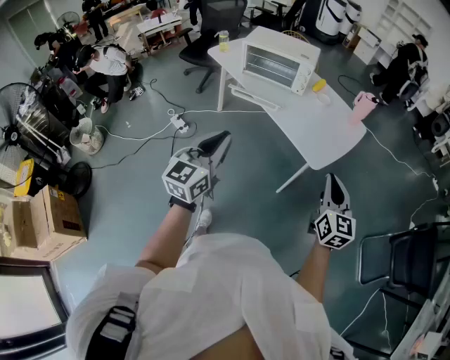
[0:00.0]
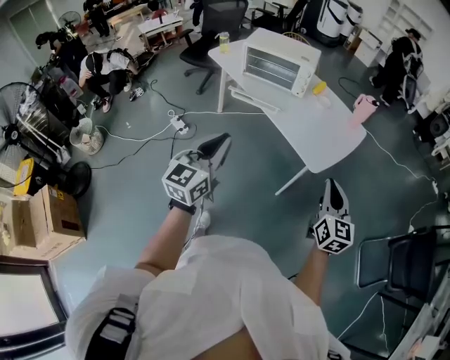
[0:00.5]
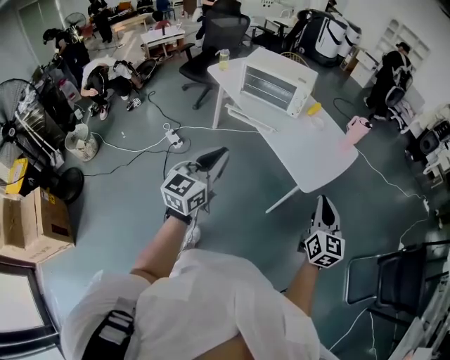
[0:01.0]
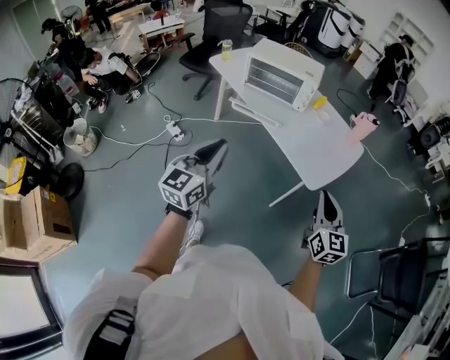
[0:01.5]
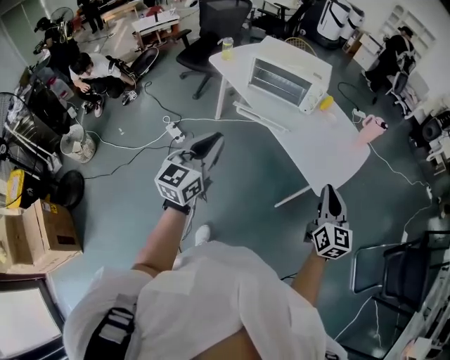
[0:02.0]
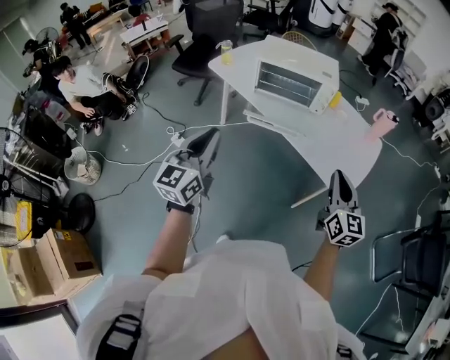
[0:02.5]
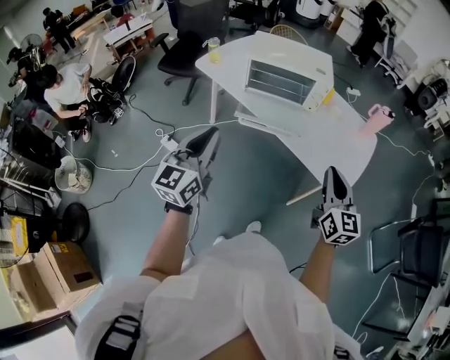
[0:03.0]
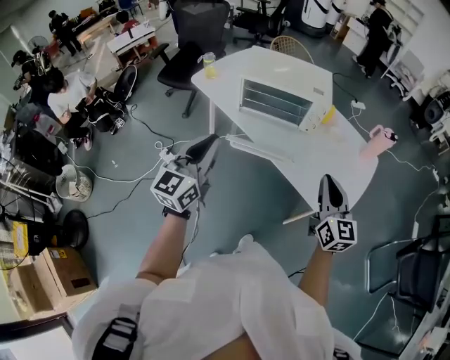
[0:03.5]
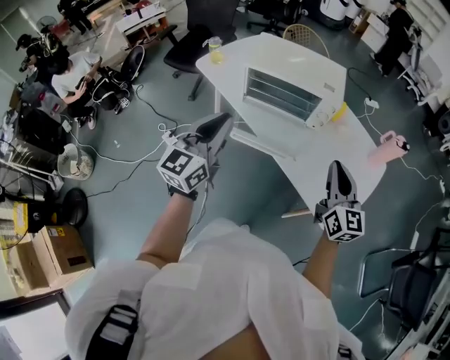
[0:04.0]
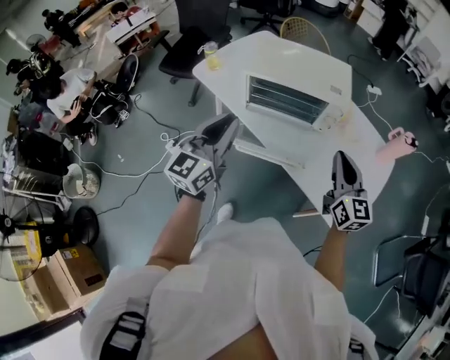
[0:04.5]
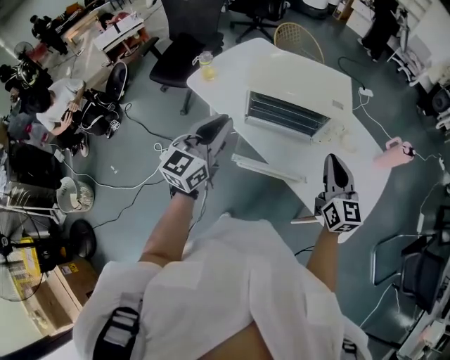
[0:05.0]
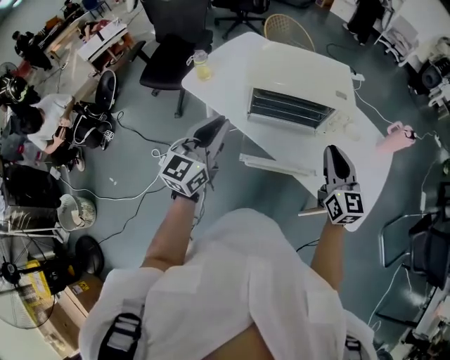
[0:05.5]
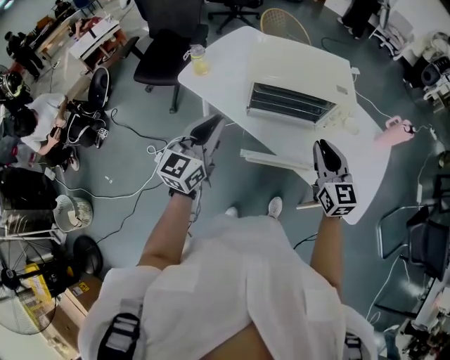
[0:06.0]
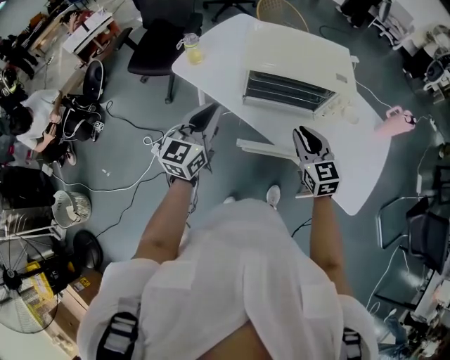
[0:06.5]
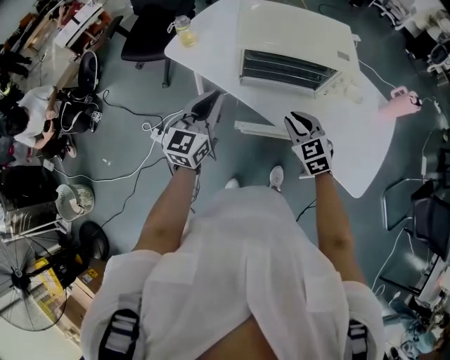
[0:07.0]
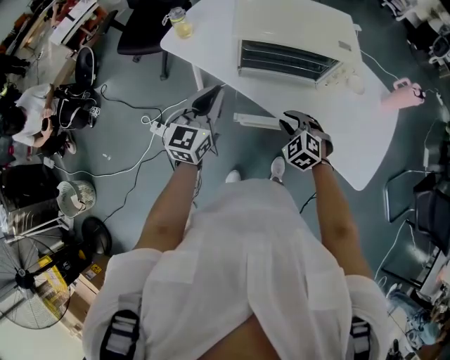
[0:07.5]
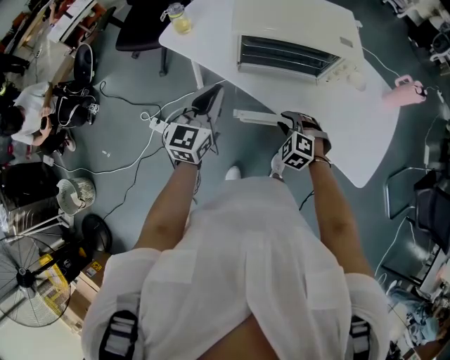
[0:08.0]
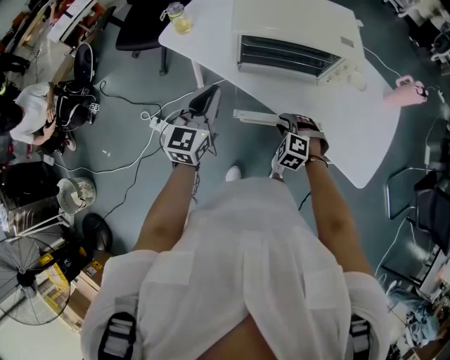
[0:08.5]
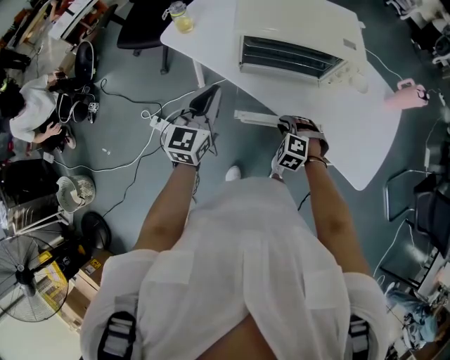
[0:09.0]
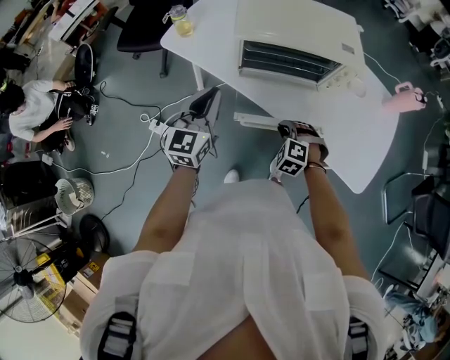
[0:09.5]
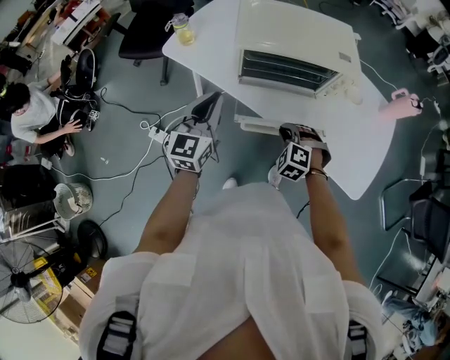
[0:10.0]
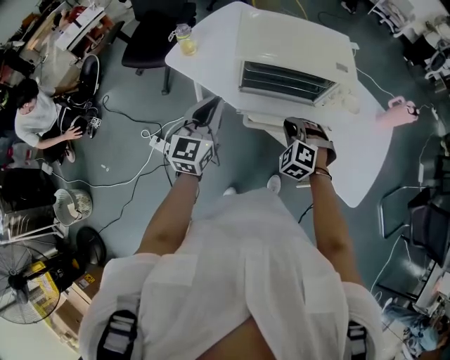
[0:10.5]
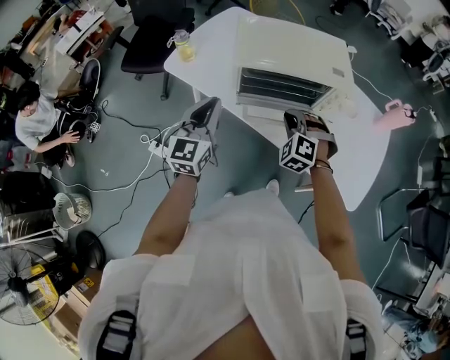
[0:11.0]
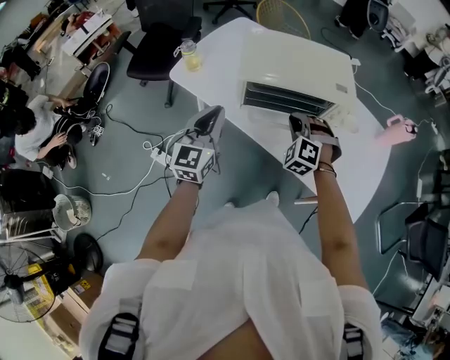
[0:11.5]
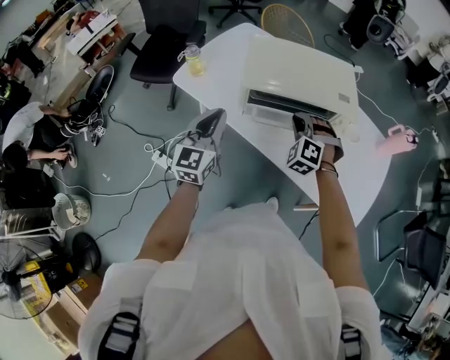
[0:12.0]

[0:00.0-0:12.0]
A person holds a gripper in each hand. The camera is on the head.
0:00.0 to 0:02.0: The right gripper is displaced forward and to the left by about 15 cm. Meanwhile the left gripper moves to the left and forward, some 15 cm.
0:02.0 to 0:04.0: The grippers both shift forward by some 25 cm.
0:04.0 to 0:06.0: The right gripper heads to the left and forward, covering approximately 20 cm. Meanwhile the left gripper travels to the left, forward and downward by roughly 20 cm.
0:06.0 to 0:08.0: The right gripper shifts about 25 cm downward, and angles its fingers downward, by about 50 degrees; the left gripper is displaced downward by roughly 10 cm.
0:08.0 to 0:10.0: The right gripper closes.
0:10.0 to 0:12.0: The left gripper shifts by some 5 cm, while the right gripper shifts some 20 cm forward and upward.

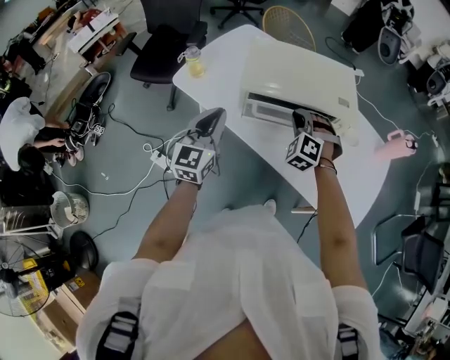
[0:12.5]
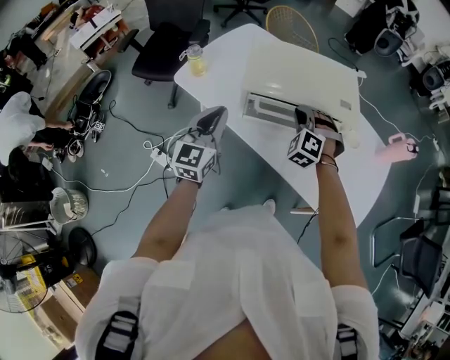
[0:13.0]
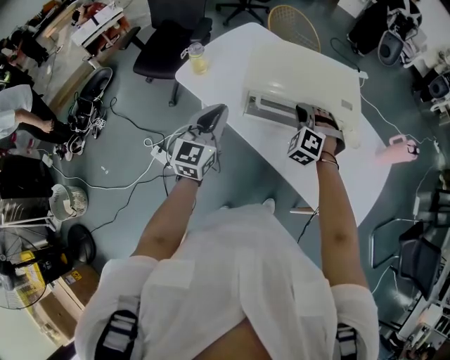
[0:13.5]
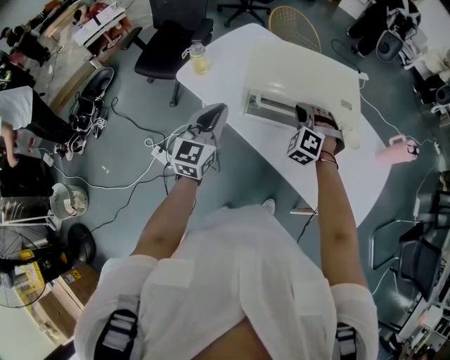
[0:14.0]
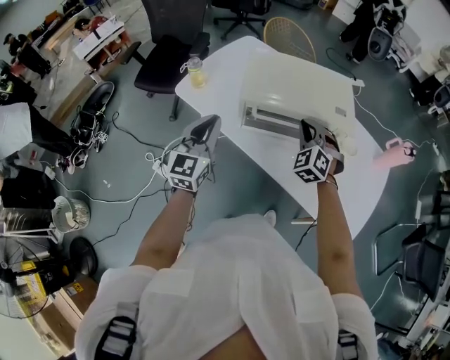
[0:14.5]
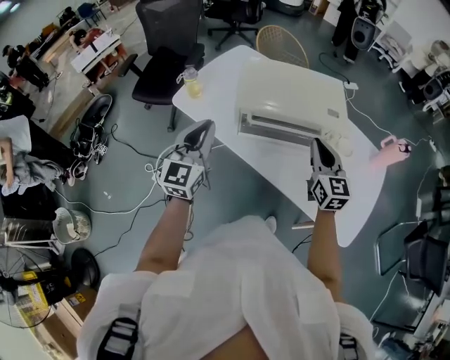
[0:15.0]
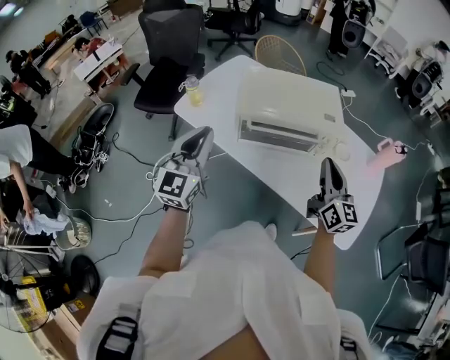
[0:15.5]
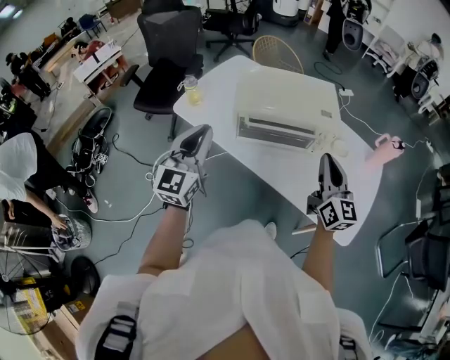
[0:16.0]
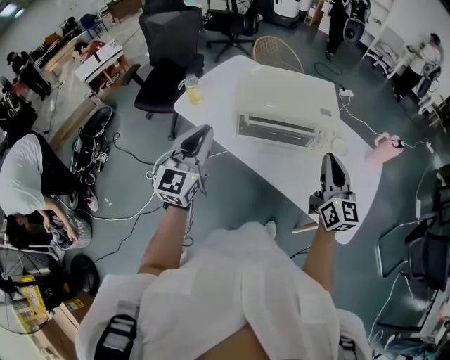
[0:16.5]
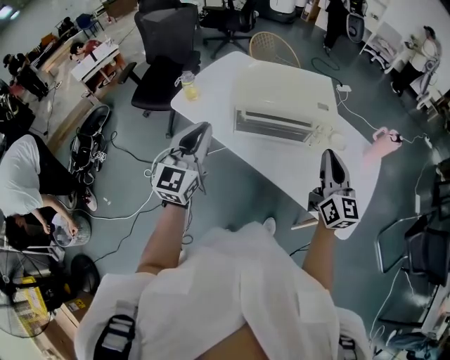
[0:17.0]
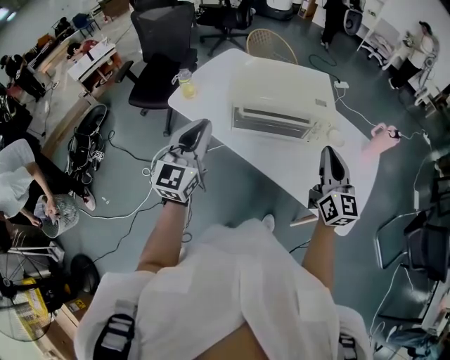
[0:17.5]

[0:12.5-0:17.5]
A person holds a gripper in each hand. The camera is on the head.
0:12.5 to 0:15.0: The right gripper travels upward, to the right and backward by some 15 cm, and rotates around the line of its fingers by approximately 70 degrees, clockwise from behind; the left gripper moves upward, roughly 5 cm.
0:15.0 to 0:17.5: The right gripper goes some 10 cm backward and upward. The left gripper heads backward, covering some 5 cm.

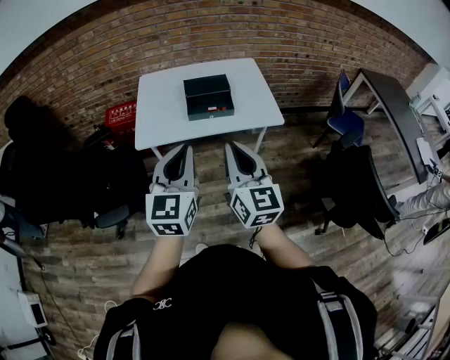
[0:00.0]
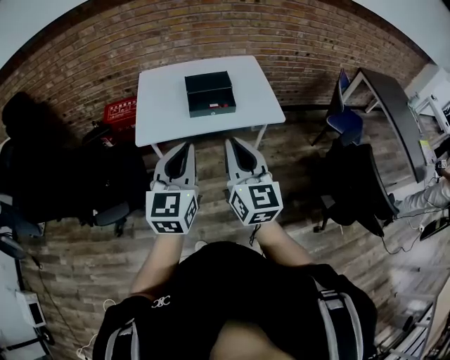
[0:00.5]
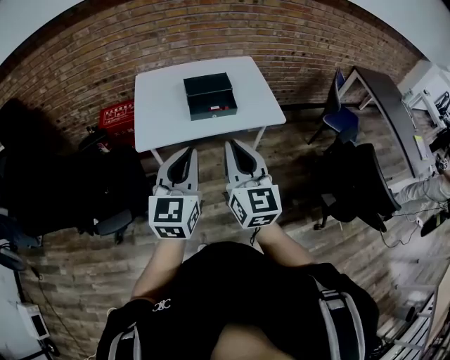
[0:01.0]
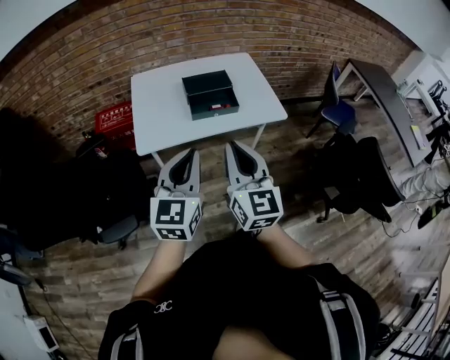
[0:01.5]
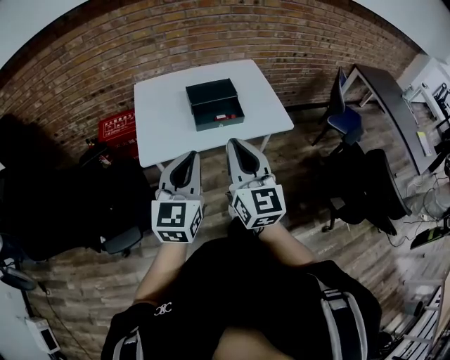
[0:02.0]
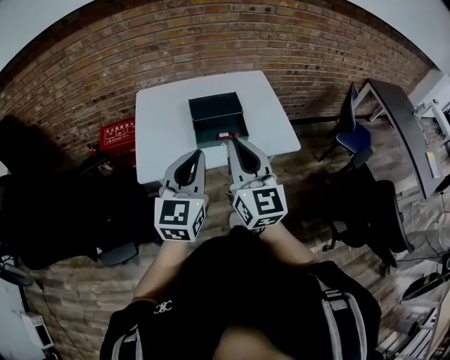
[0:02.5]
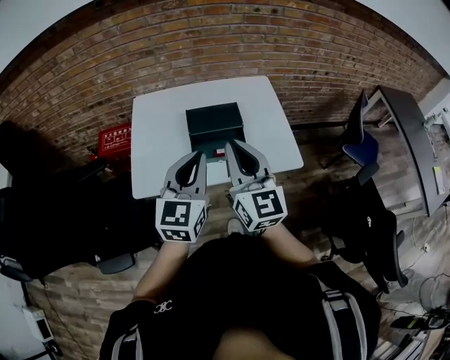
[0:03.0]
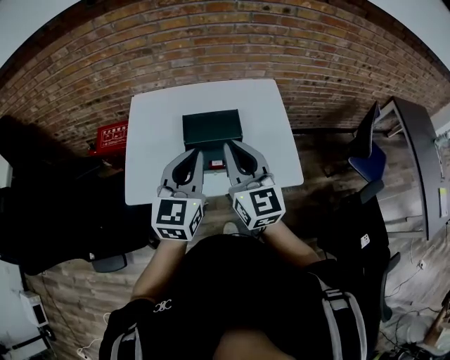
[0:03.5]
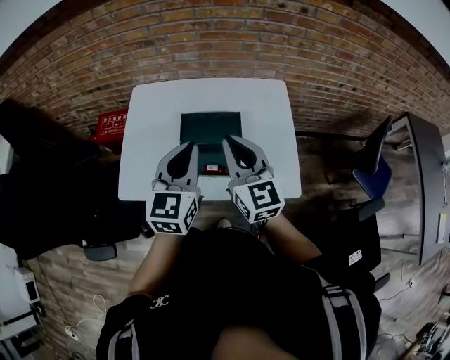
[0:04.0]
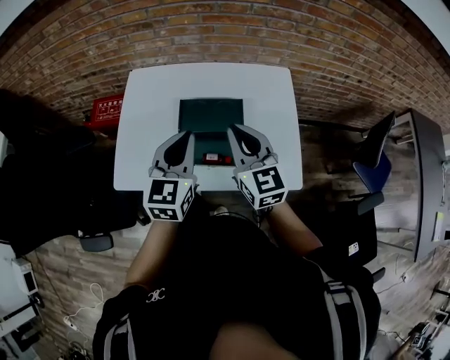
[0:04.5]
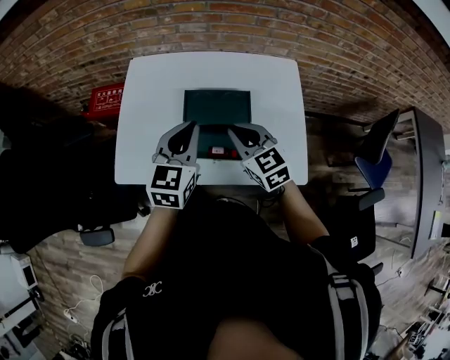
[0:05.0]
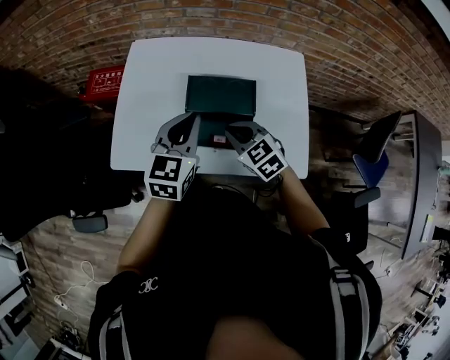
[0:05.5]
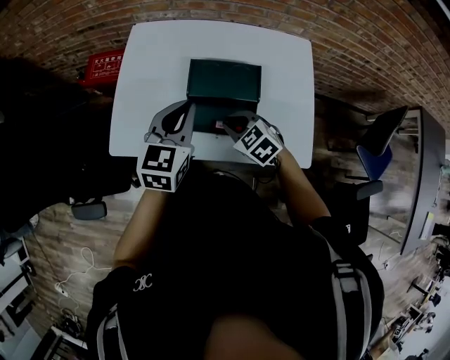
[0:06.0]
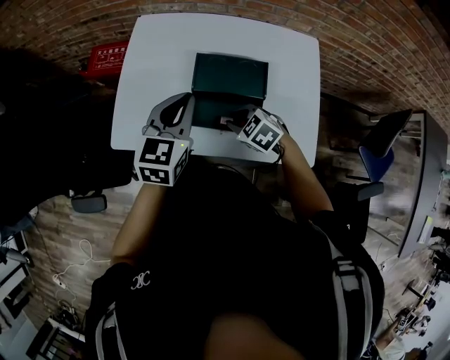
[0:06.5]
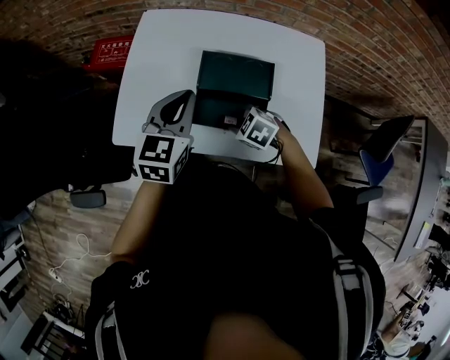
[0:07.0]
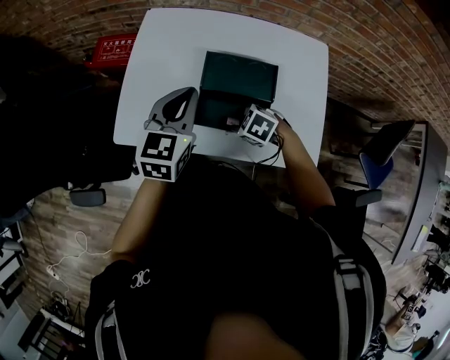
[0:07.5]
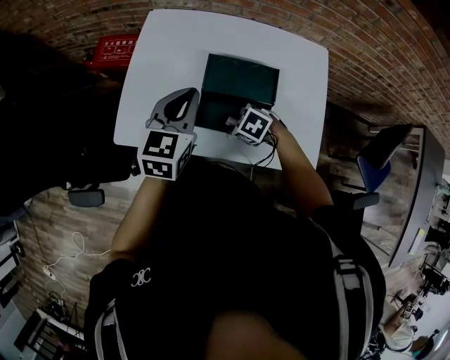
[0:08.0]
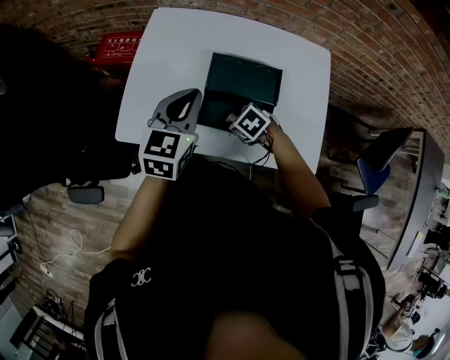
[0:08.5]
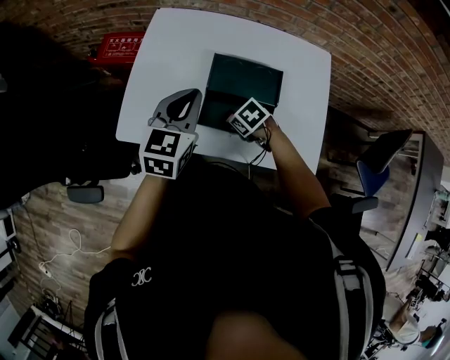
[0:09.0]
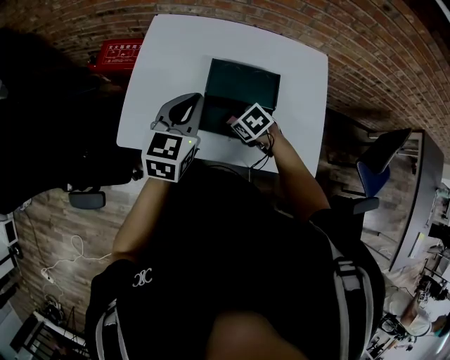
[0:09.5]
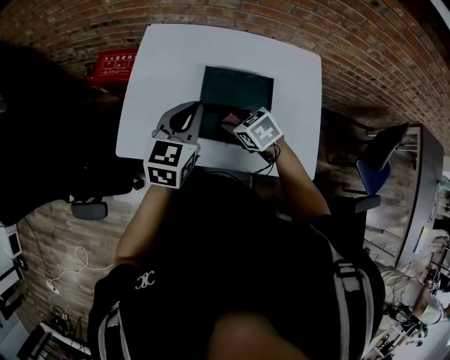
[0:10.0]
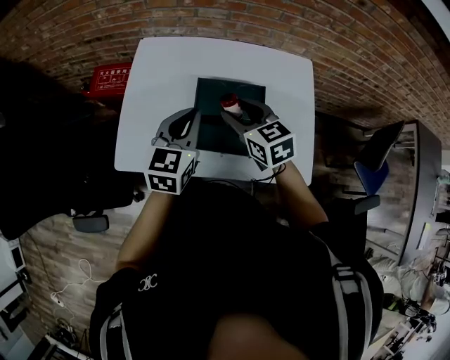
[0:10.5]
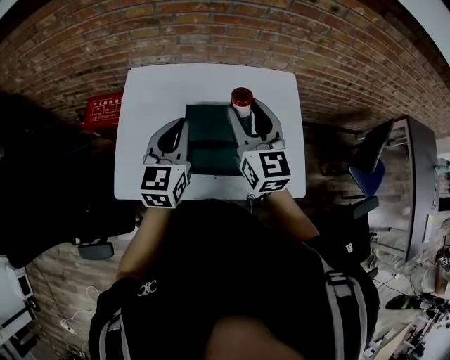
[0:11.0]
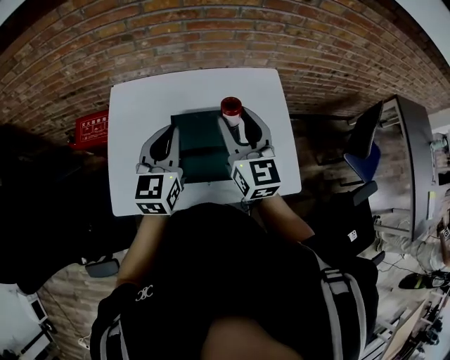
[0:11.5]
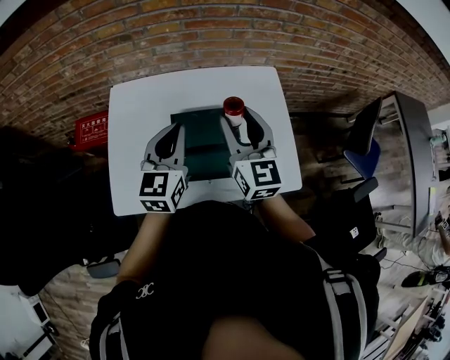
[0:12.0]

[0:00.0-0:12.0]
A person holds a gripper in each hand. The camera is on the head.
0:00.0 to 0:02.0: Both grippers travel together to the left and forward, some 10 cm.
0:02.0 to 0:04.0: Both grippers travel together forward, some 35 cm. The right gripper swivels about 20 degrees.
0:04.0 to 0:06.0: The right gripper is displaced downward by roughly 25 cm, and angles its fingers downward, by roughly 50 degrees. Meanwhile the left gripper travels downward and to the left by roughly 10 cm.
0:06.0 to 0:08.0: The right gripper is displaced downward by approximately 5 cm, turns by roughly 30 degrees, and opens up.
0:08.0 to 0:10.0: The right gripper goes approximately 5 cm upward, and turns by roughly 30 degrees.
0:10.0 to 0:12.0: The right gripper heads upward, covering some 25 cm, and tilts its fingers roughly 50 degrees upward. Meanwhile the left gripper changes place by approximately 10 cm.
